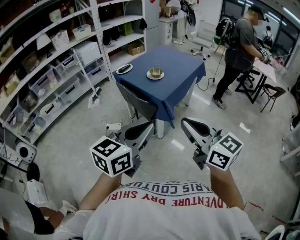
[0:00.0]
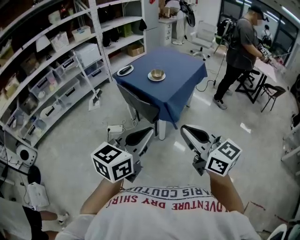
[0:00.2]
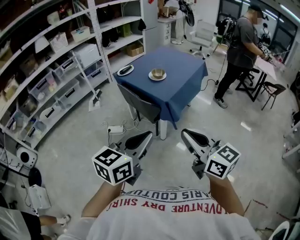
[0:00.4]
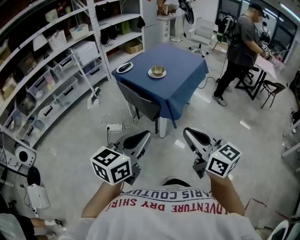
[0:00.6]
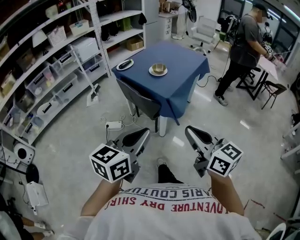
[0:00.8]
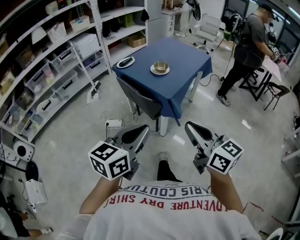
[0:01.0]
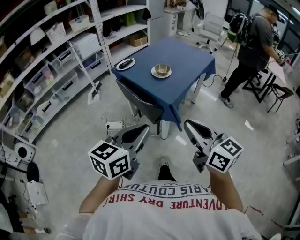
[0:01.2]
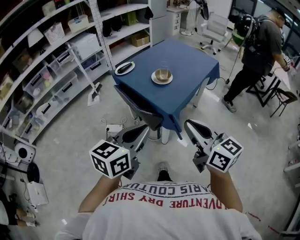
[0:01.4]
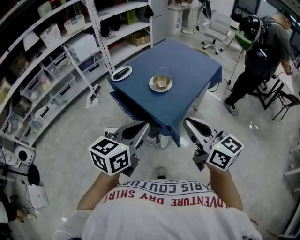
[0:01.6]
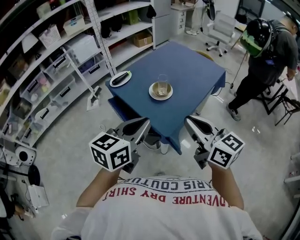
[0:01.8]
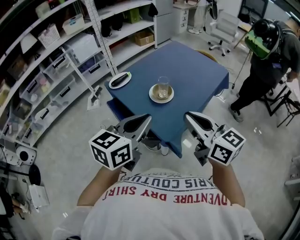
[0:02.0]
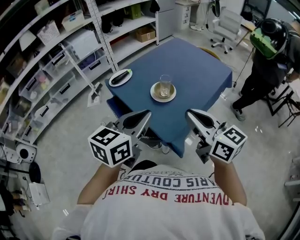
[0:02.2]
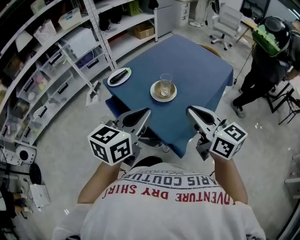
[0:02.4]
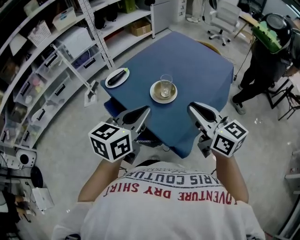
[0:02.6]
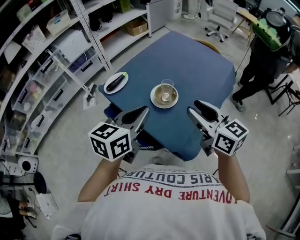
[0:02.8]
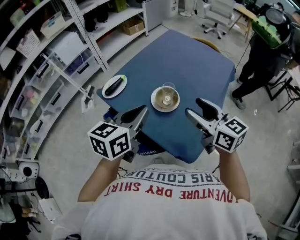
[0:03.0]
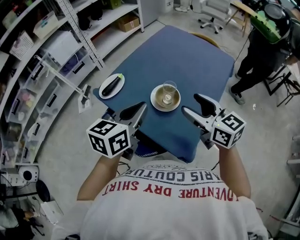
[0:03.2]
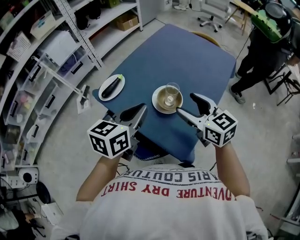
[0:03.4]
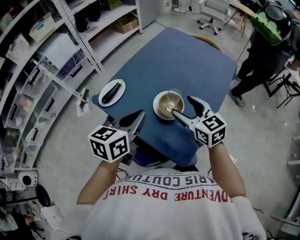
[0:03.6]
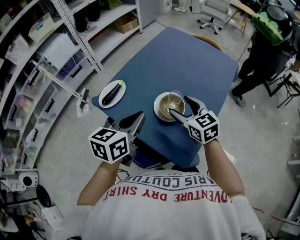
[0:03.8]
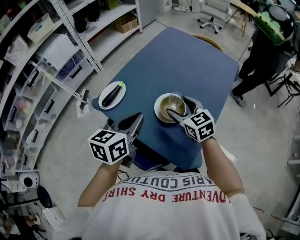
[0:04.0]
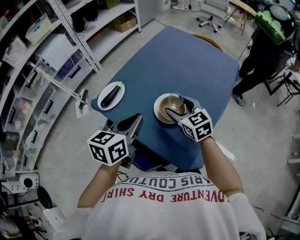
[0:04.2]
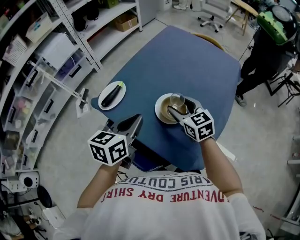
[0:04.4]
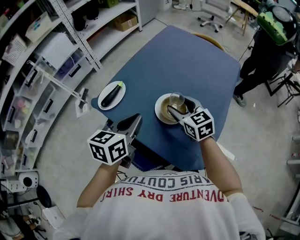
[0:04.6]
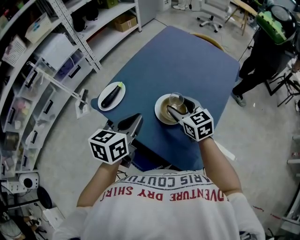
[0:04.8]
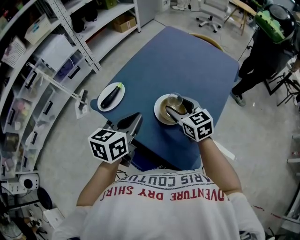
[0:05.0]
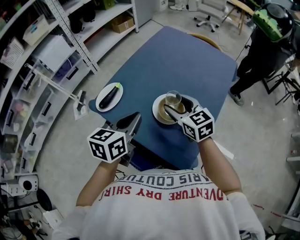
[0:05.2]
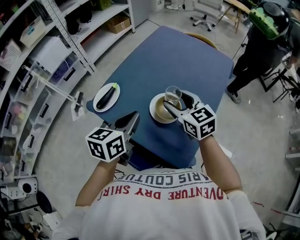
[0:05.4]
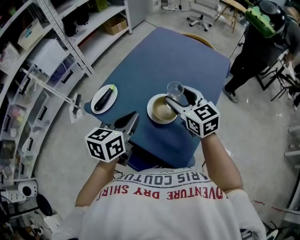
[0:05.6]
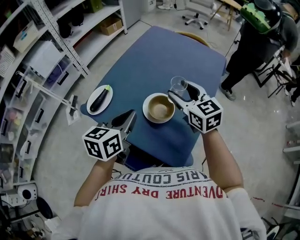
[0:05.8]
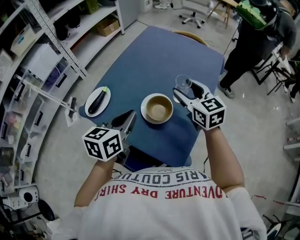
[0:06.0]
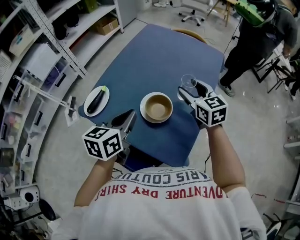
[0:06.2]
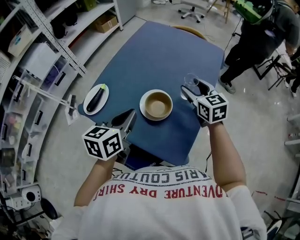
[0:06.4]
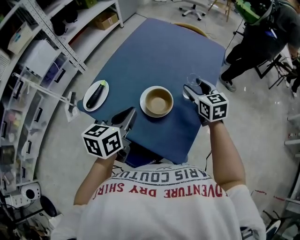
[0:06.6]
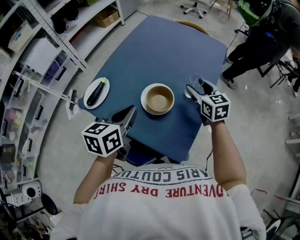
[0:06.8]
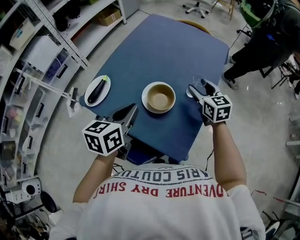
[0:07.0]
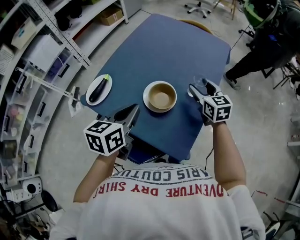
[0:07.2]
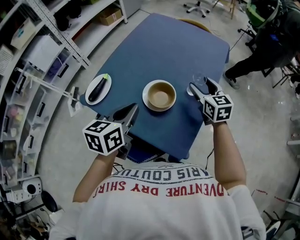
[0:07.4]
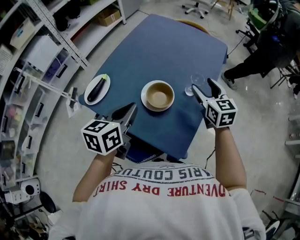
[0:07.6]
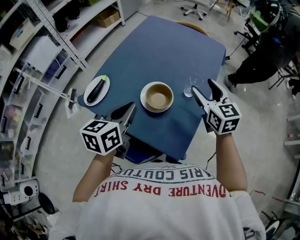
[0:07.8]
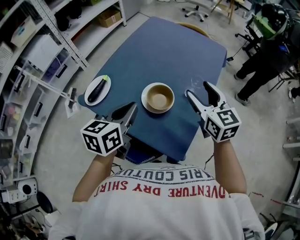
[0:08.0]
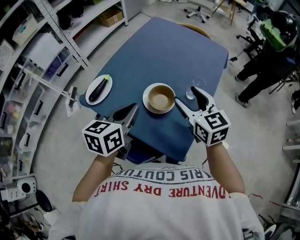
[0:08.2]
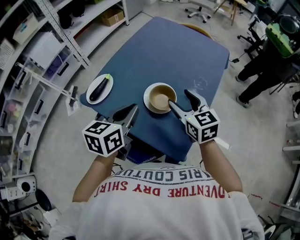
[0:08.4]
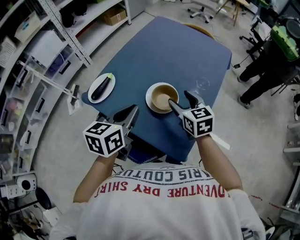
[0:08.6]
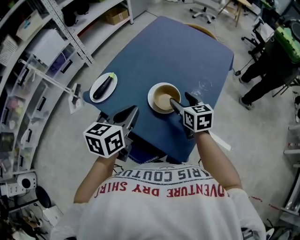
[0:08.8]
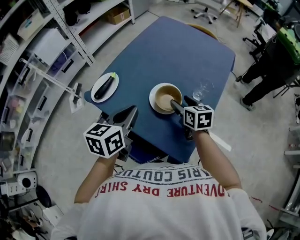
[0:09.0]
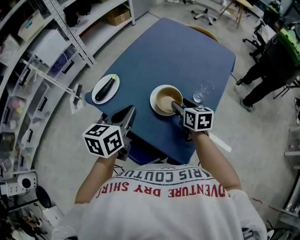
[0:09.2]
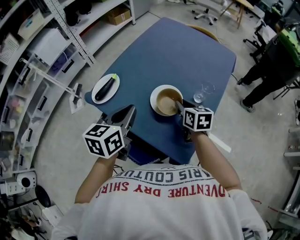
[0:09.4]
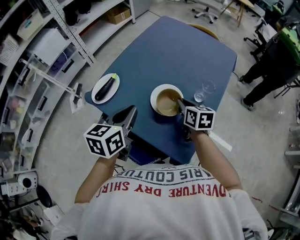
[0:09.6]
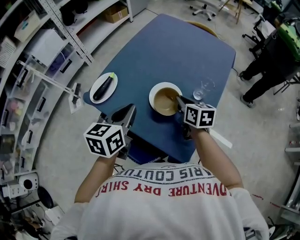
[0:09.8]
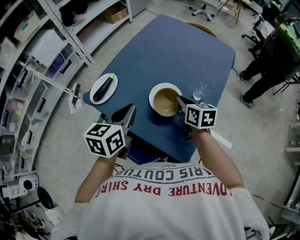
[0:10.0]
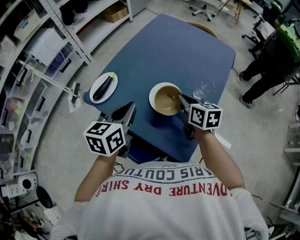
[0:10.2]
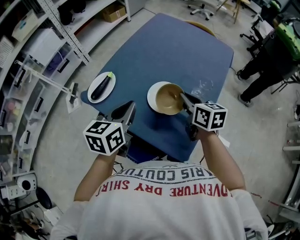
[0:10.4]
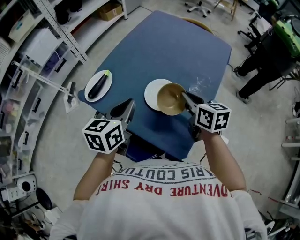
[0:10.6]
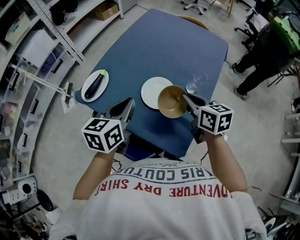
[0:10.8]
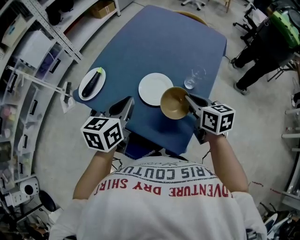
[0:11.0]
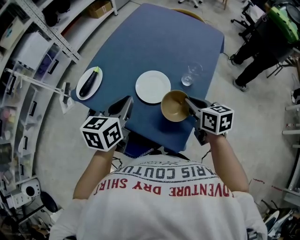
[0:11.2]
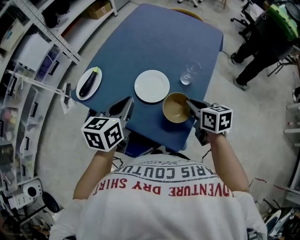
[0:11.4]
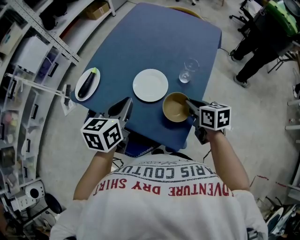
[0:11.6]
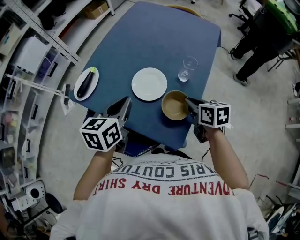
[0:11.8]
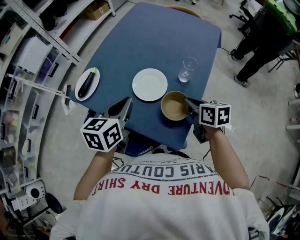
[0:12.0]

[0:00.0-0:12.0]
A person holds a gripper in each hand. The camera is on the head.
0:00.0 to 0:01.6: The grippers both shift forward by about 25 cm.
0:01.6 to 0:03.0: The grippers both shift forward by some 25 cm. The right gripper opens its fingers.
0:03.0 to 0:04.4: The left gripper moves downward, forward and to the left, approximately 10 cm. Meanwhile the right gripper shifts about 20 cm downward, forward and to the left, and swivels about 20 degrees.
0:04.4 to 0:06.0: The right gripper is displaced to the right and upward by approximately 10 cm.
0:06.0 to 0:07.6: The right gripper moves to the right, roughly 10 cm.
0:07.6 to 0:09.0: The right gripper shifts approximately 15 cm to the left and downward, and swivels some 20 degrees.
0:09.0 to 0:10.4: The right gripper is displaced upward by some 5 cm, and closes up.
0:10.4 to 0:12.0: The right gripper heads to the right, backward and downward, covering roughly 15 cm. The left gripper ends up about 5 cm from where it was.

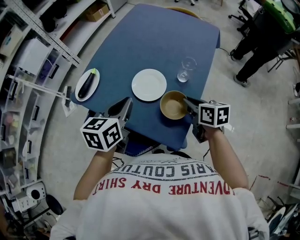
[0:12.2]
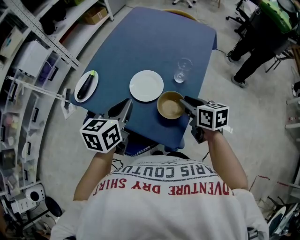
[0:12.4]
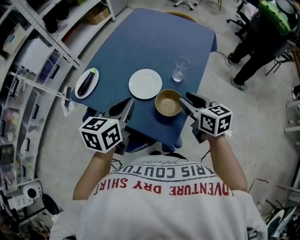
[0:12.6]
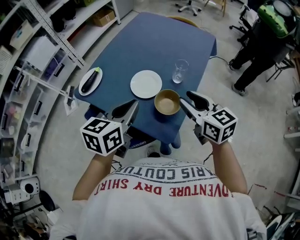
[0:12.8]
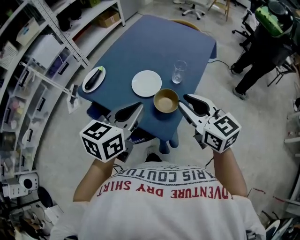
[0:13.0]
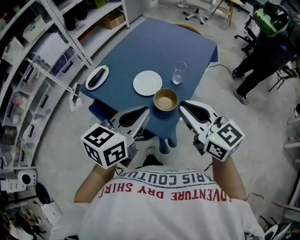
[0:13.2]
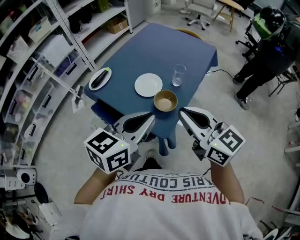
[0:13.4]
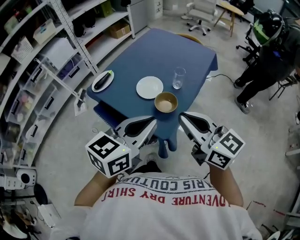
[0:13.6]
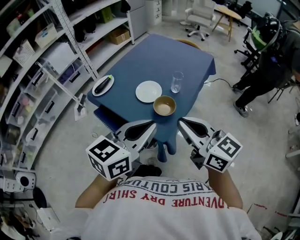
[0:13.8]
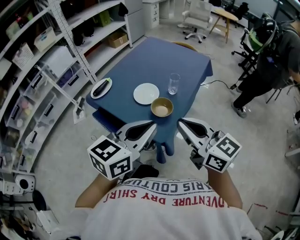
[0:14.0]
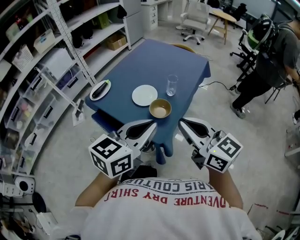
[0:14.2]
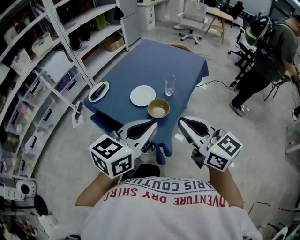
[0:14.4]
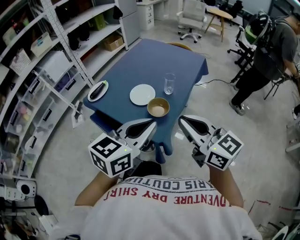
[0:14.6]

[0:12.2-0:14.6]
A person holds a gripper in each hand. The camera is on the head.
0:12.2 to 0:13.4: The left gripper is displaced backward, upward and to the right by some 25 cm. Meanwhile the right gripper goes approximately 30 cm upward and backward, and tilts its fingers approximately 30 degrees upward.
0:13.4 to 0:14.6: The right gripper ends up about 5 cm from where it was.

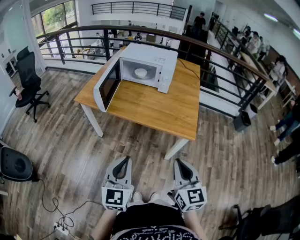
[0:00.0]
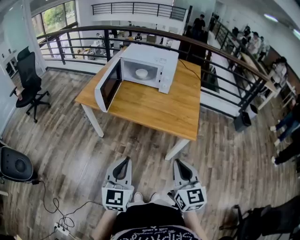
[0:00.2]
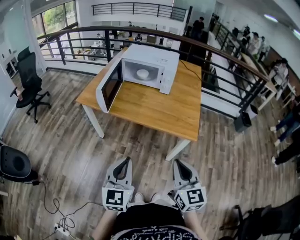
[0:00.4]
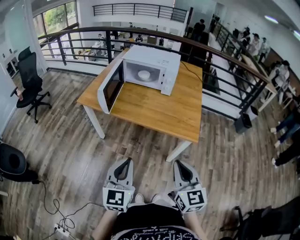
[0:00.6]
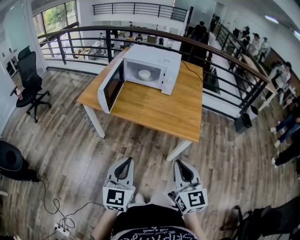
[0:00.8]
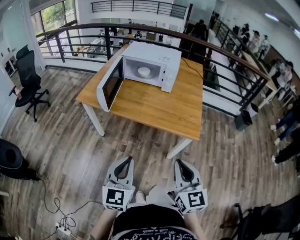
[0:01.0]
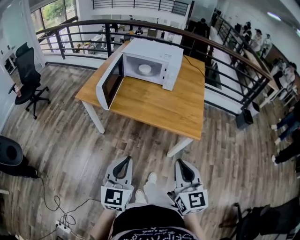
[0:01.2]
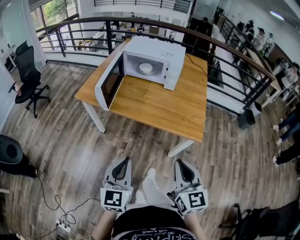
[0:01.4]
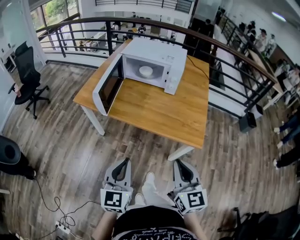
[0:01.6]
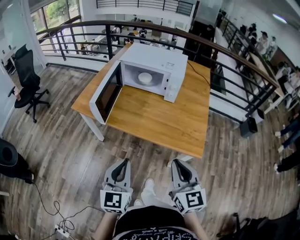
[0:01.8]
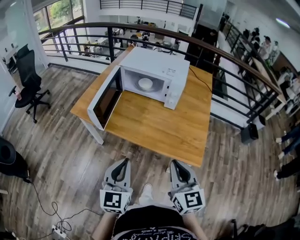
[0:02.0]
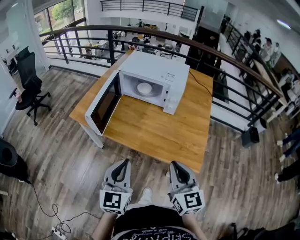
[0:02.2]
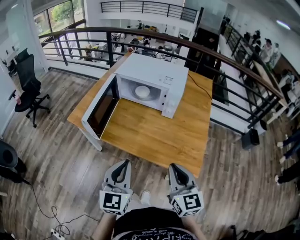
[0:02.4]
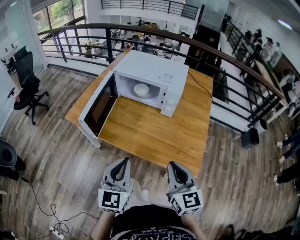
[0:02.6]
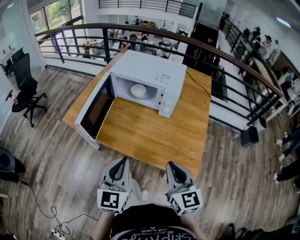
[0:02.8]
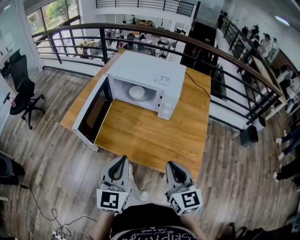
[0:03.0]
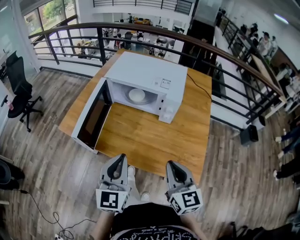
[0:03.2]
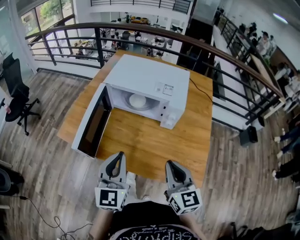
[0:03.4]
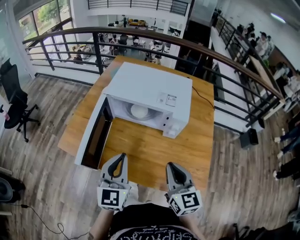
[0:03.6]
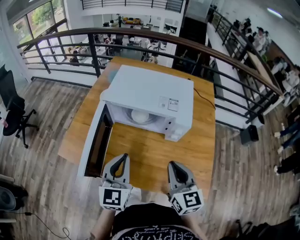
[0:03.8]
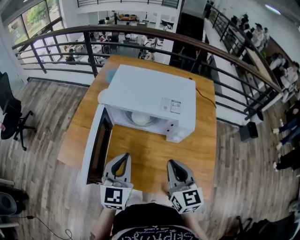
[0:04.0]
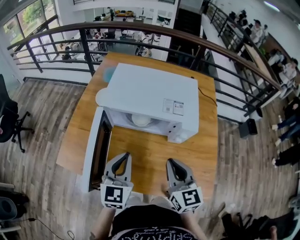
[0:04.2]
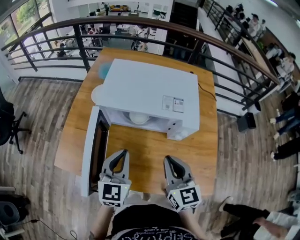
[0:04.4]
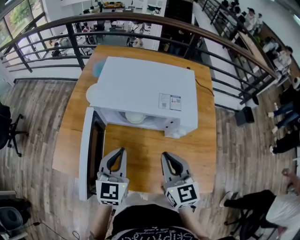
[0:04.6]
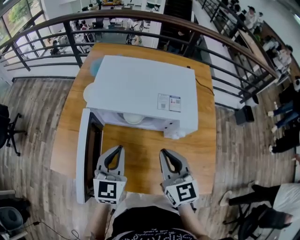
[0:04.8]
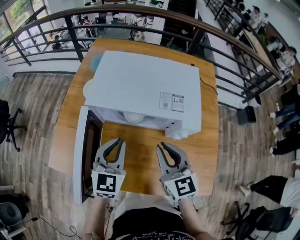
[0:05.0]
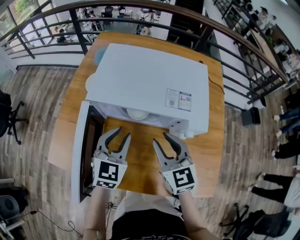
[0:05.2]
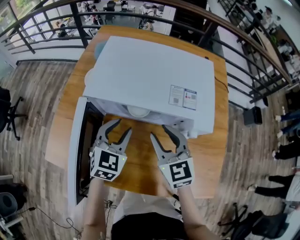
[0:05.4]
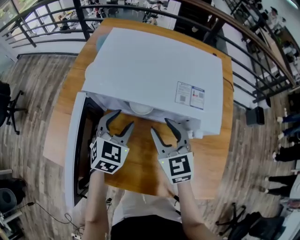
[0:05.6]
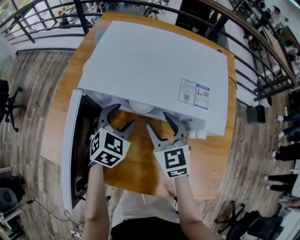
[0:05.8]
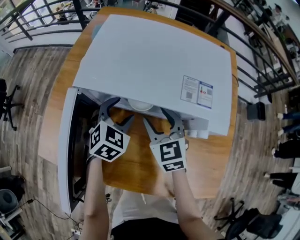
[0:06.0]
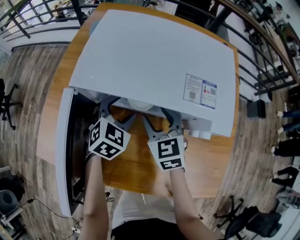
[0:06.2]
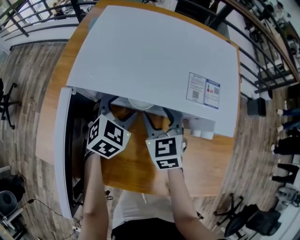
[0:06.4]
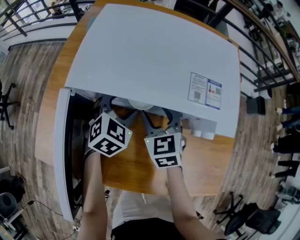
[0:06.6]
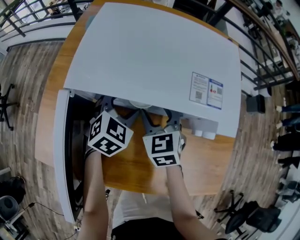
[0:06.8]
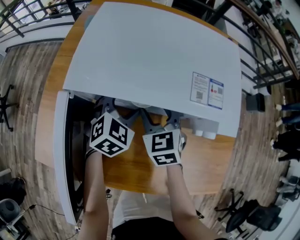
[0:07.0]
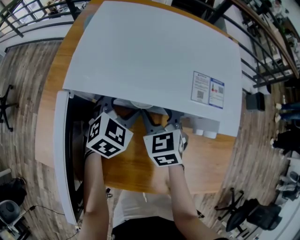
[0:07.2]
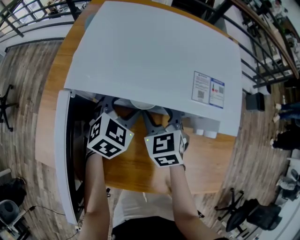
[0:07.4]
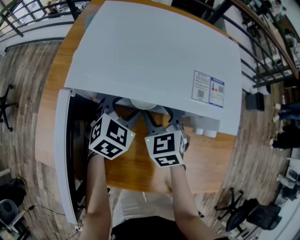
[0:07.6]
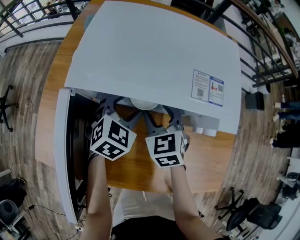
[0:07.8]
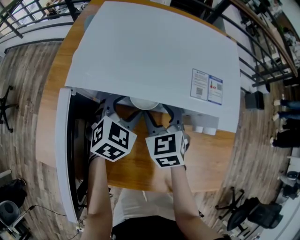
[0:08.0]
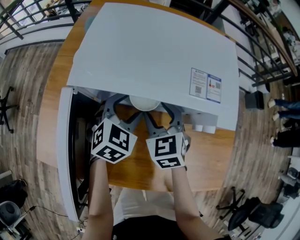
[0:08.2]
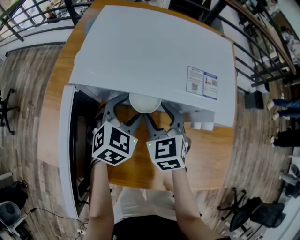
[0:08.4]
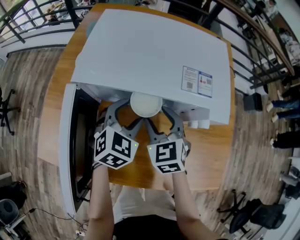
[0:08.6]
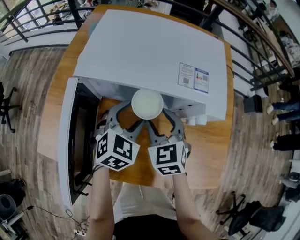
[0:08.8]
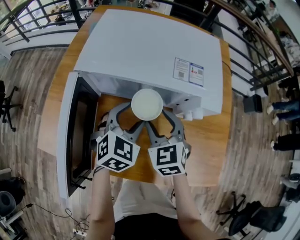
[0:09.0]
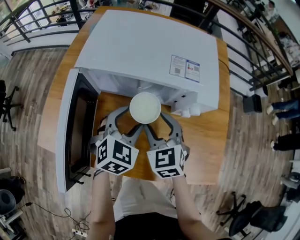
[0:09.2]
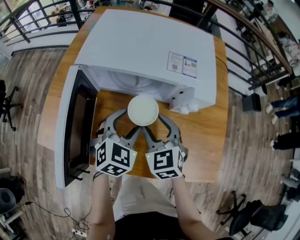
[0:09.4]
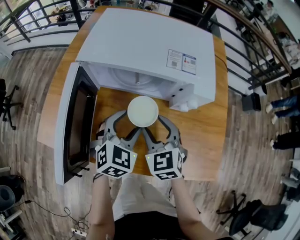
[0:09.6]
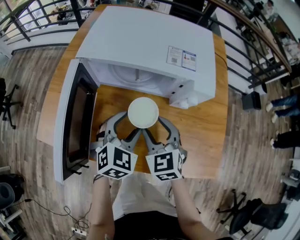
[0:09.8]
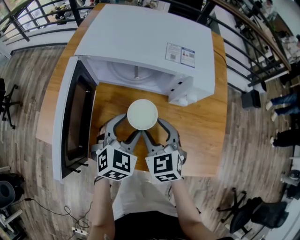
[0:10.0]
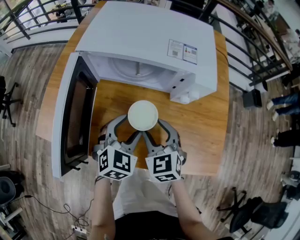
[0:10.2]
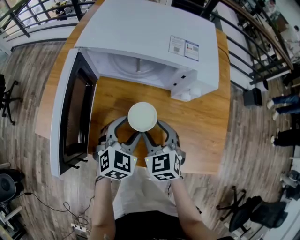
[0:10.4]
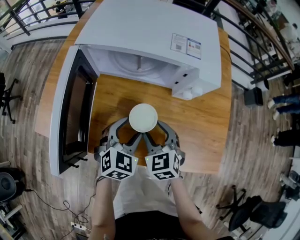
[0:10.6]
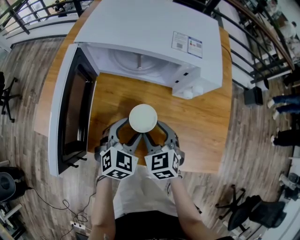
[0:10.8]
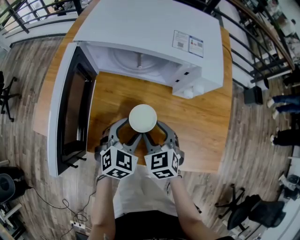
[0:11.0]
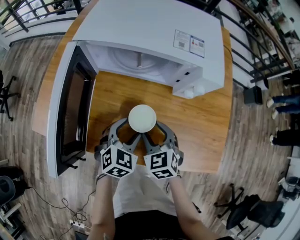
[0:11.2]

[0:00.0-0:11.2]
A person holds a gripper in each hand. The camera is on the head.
0:00.0 to 0:01.6: Both grippers travel together forward, some 10 cm.
0:01.6 to 0:03.2: Both grippers travel together forward, roughly 25 cm.
0:03.2 to 0:04.8: The right gripper moves forward and to the left, roughly 25 cm, while the left gripper heads forward, covering about 25 cm.
0:04.8 to 0:06.4: The grippers both shift downward and forward by roughly 20 cm. The left gripper rotates about 40 degrees, and opens its fingers; the right gripper turns by roughly 20 degrees, and opens its fingers.
0:06.4 to 0:08.0: The grippers stay close to where they were, moving slightly.
0:08.0 to 0:09.6: Both grippers travel together backward, some 15 cm.
0:09.6 to 0:11.2: The two grippers go roughly 10 cm downward and backward.
